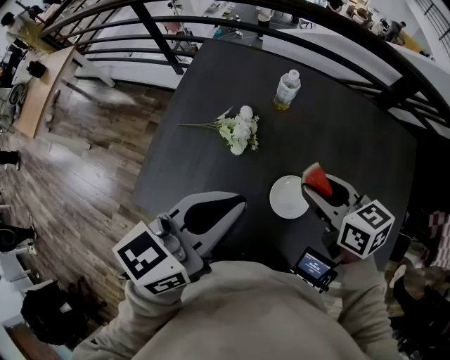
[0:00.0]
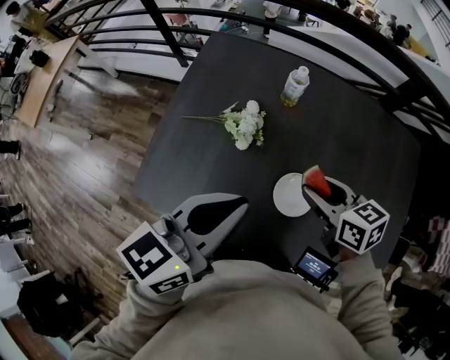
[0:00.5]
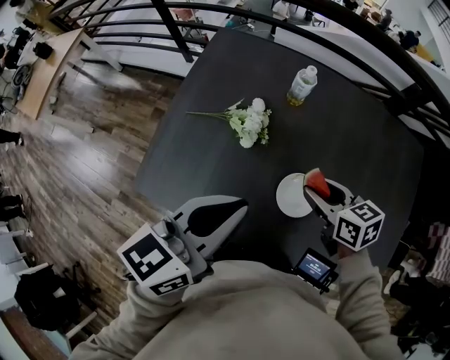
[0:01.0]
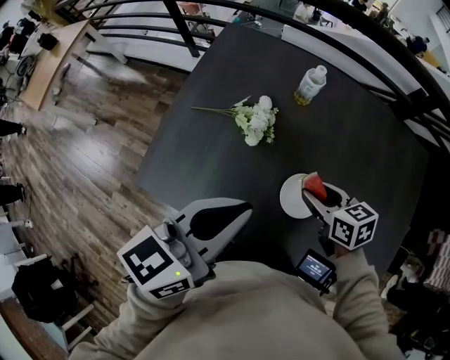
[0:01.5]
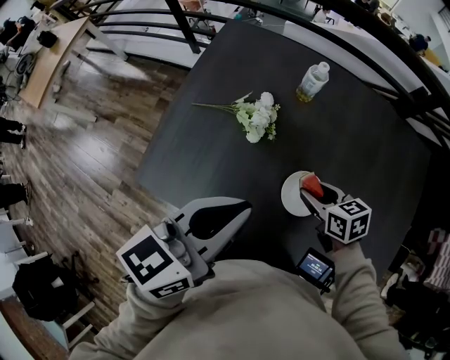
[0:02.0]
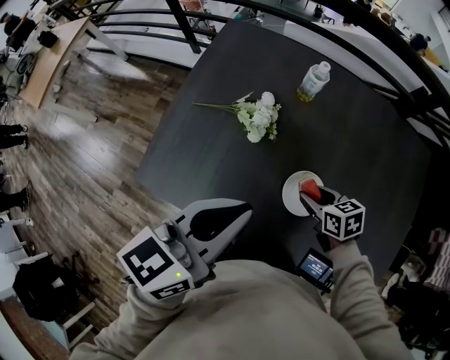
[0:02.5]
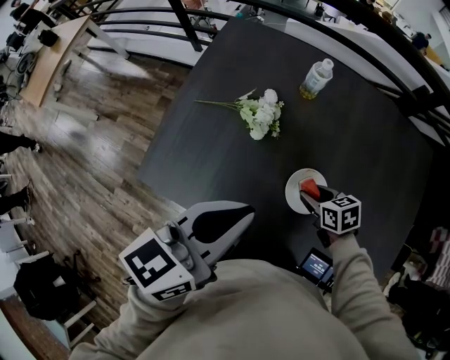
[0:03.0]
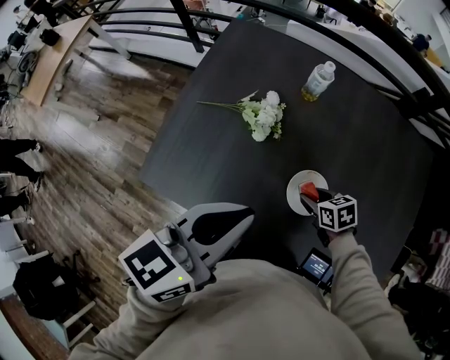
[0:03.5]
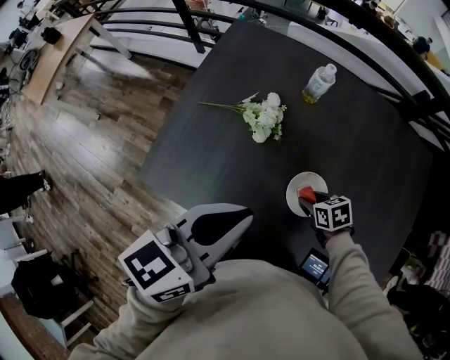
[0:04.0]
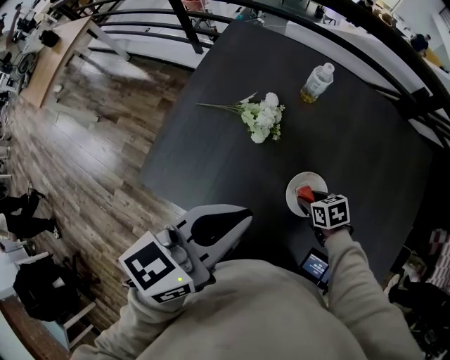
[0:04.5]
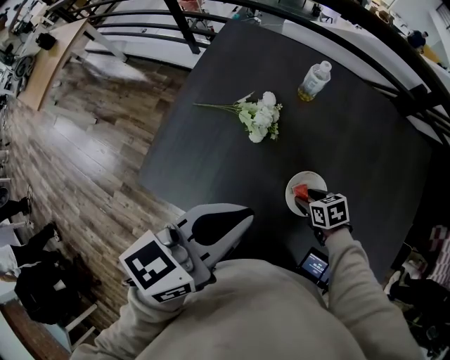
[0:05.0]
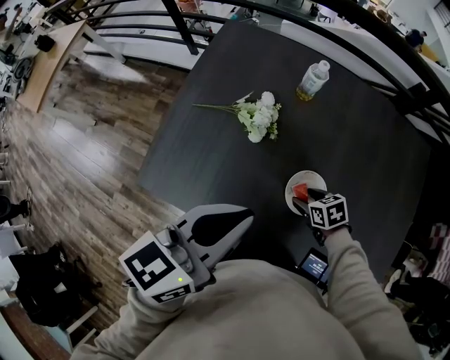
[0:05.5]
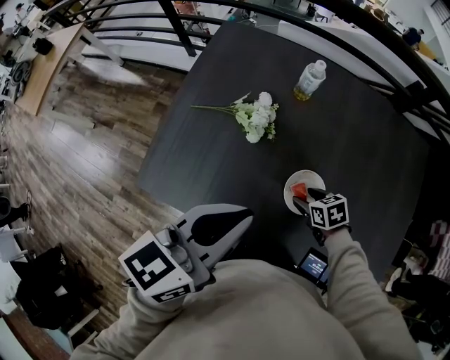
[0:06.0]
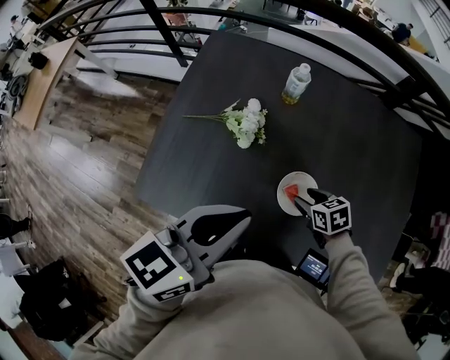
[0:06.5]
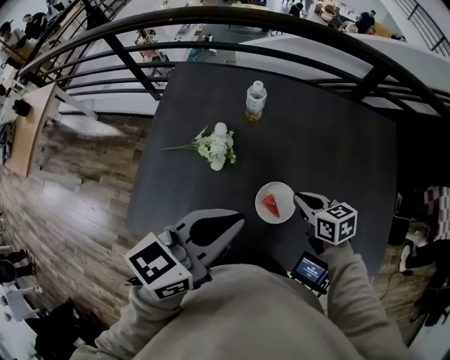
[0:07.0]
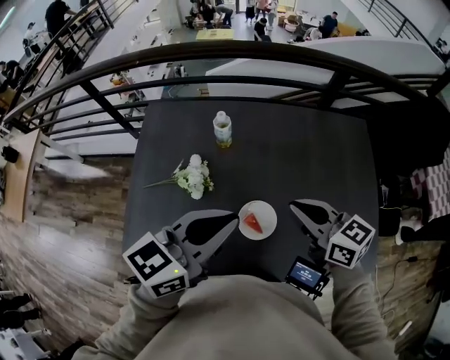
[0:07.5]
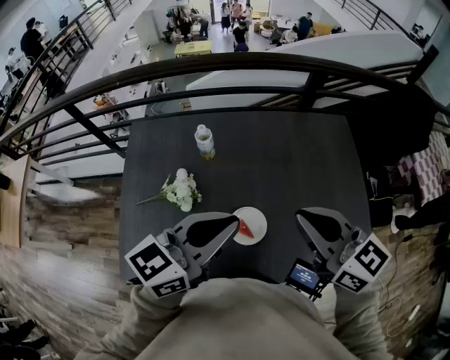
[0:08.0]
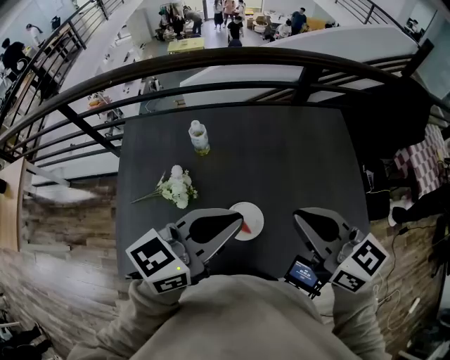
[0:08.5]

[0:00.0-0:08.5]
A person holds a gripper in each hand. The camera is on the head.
0:00.0 to 0:02.0: The right gripper moves downward, roughly 15 cm.
0:02.0 to 0:04.0: The right gripper goes approximately 10 cm downward.
0:04.0 to 0:06.5: The grippers move only a little.
0:06.5 to 0:08.5: The right gripper moves upward, approximately 35 cm, angles its fingers upward, by about 40 degrees, and closes. The left gripper changes place by about 15 cm, and rotates some 30 degrees.

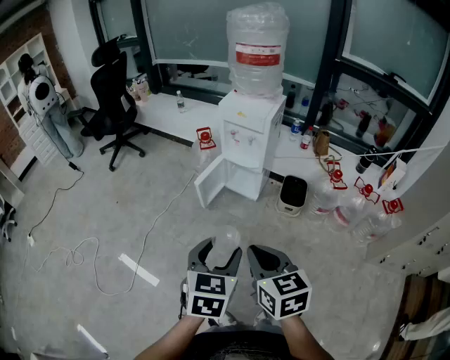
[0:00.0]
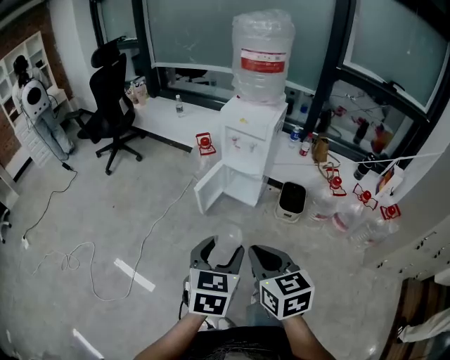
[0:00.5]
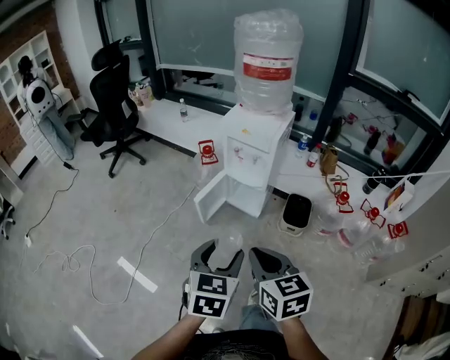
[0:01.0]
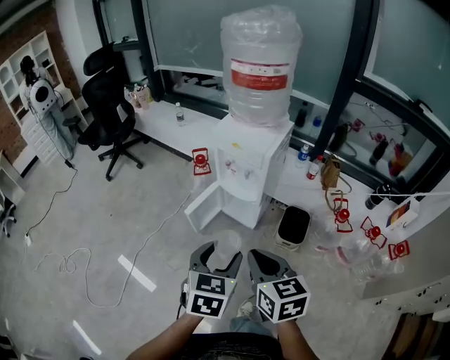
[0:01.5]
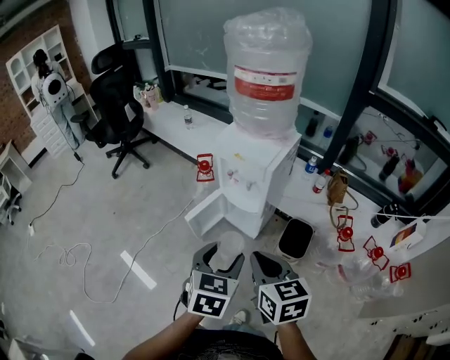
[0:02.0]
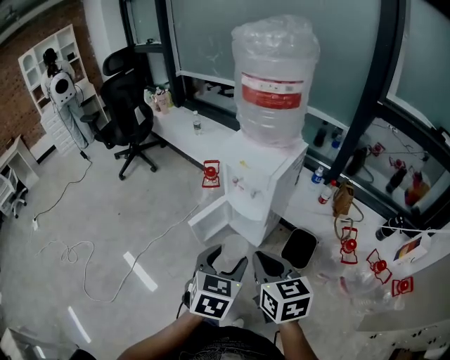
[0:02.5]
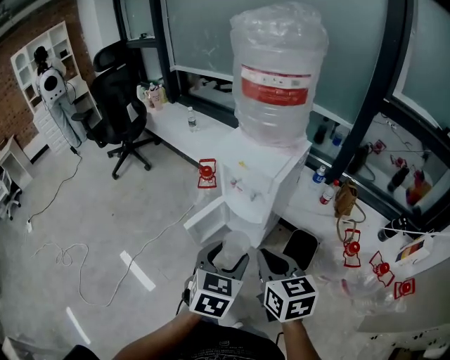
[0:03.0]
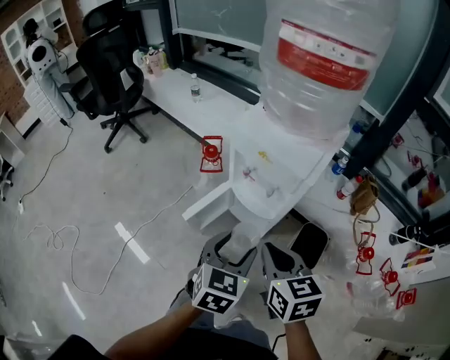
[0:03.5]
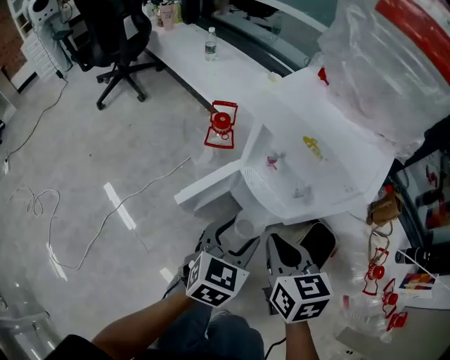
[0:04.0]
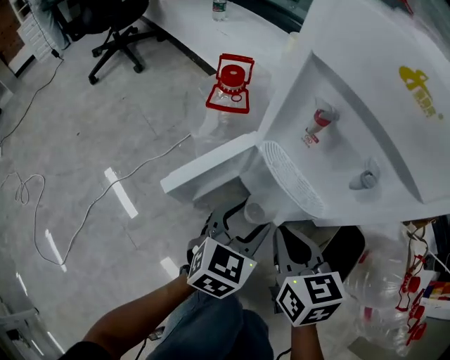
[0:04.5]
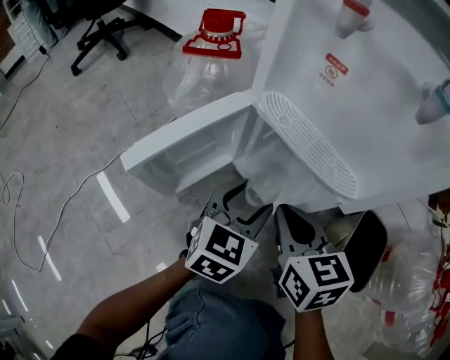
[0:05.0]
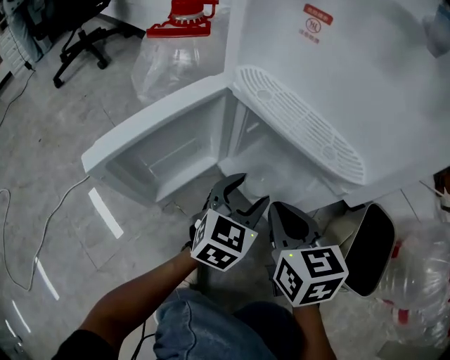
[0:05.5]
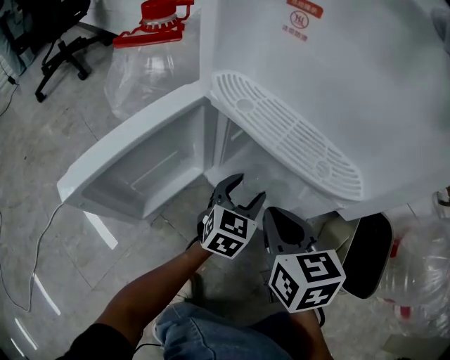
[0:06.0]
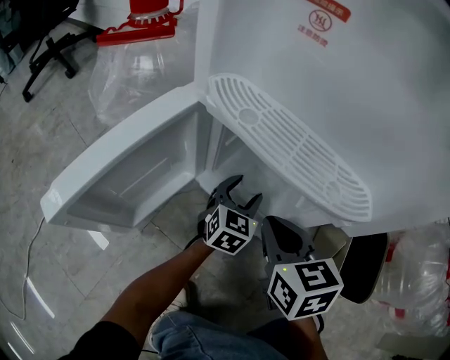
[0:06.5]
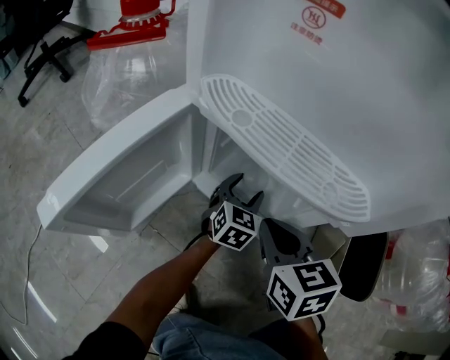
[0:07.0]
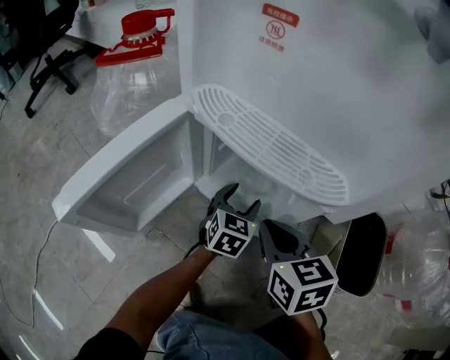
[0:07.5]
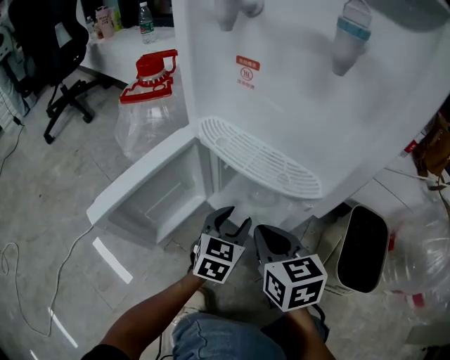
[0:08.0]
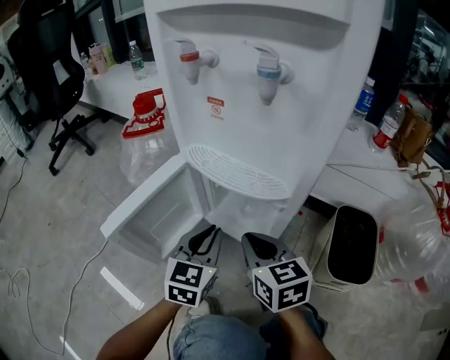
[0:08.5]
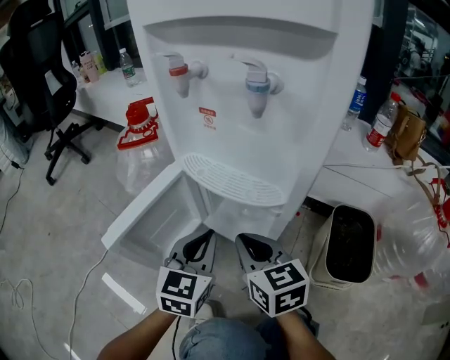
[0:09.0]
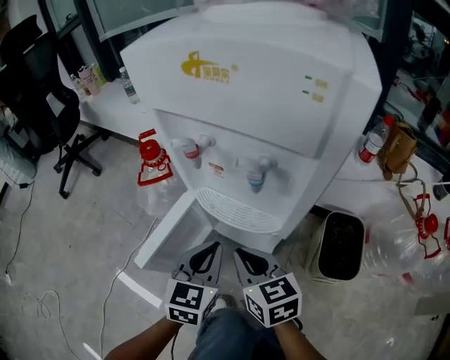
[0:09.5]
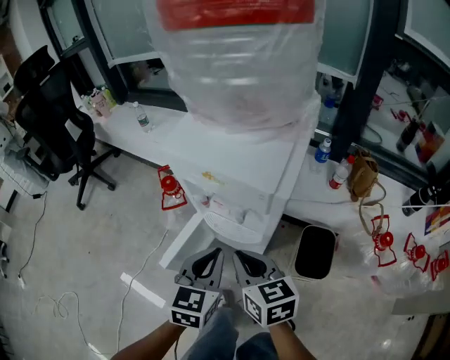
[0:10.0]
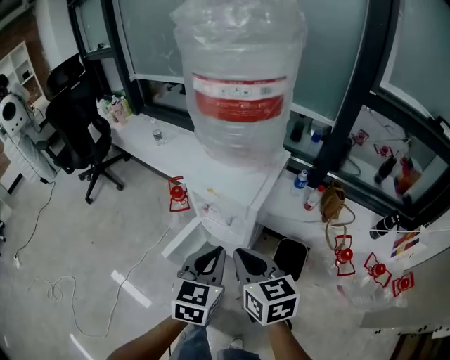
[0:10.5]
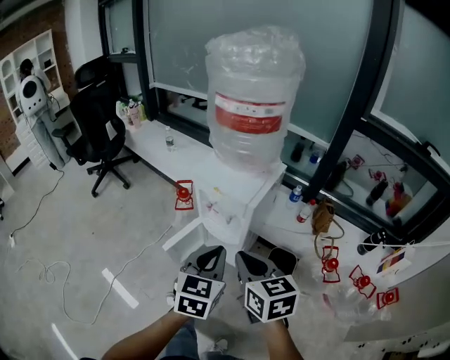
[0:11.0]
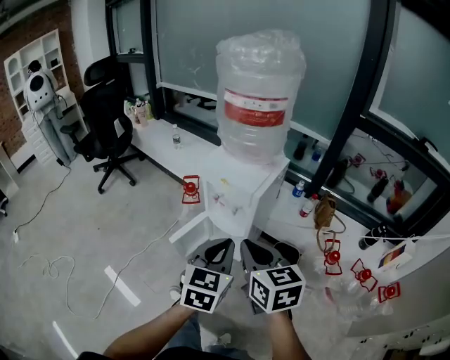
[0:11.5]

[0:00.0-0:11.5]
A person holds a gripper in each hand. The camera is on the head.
0:00.0 to 0:02.0: Both grippers move forward and to the right, approximately 30 cm.
0:02.0 to 0:04.0: The left gripper shifts some 35 cm downward and forward. Meanwhile the right gripper goes roughly 35 cm forward and downward.
0:04.0 to 0:06.0: The two grippers go about 40 cm downward.
0:07.5 to 0:09.5: The right gripper shifts roughly 20 cm upward, while the left gripper heads upward, covering approximately 30 cm, and closes its fingers.
0:09.5 to 0:11.5: Both grippers move upward and backward, roughly 50 cm.

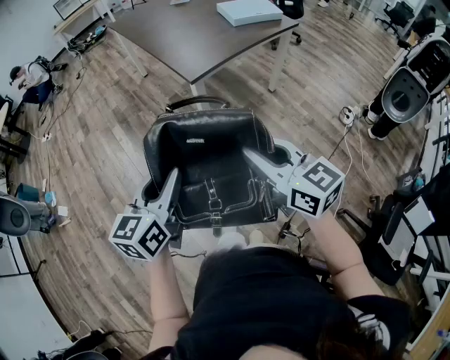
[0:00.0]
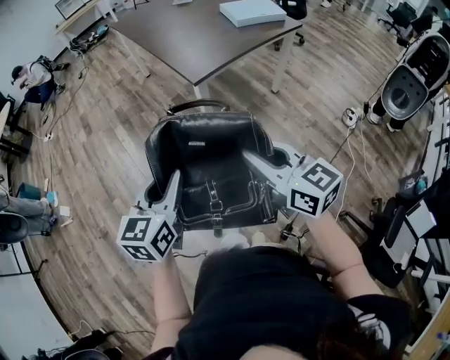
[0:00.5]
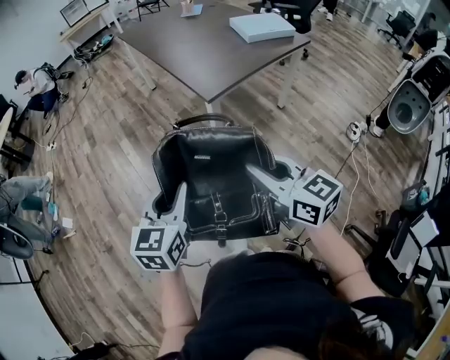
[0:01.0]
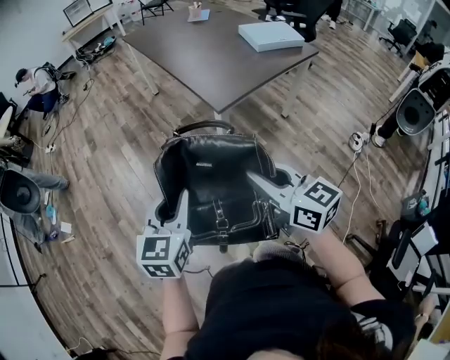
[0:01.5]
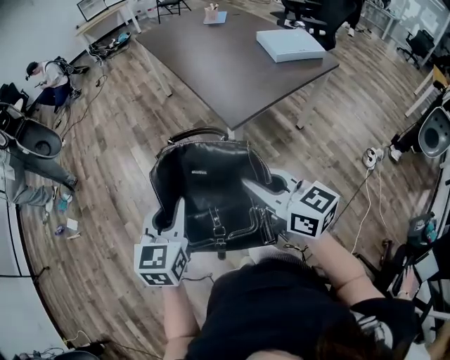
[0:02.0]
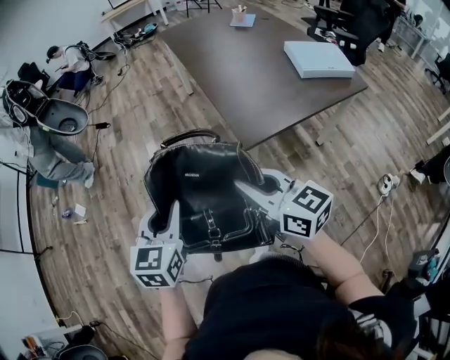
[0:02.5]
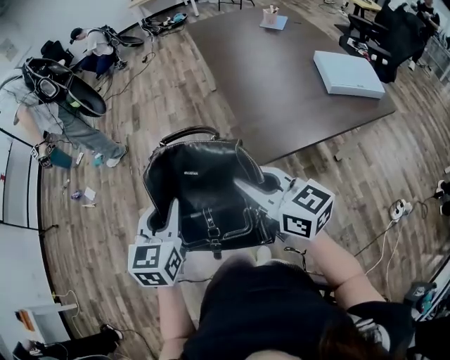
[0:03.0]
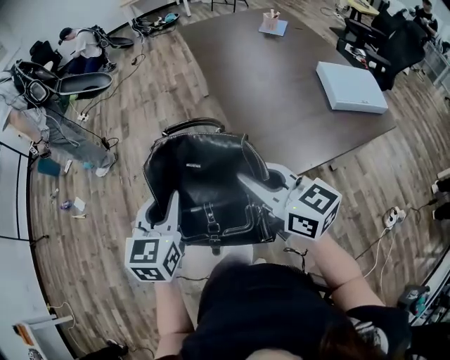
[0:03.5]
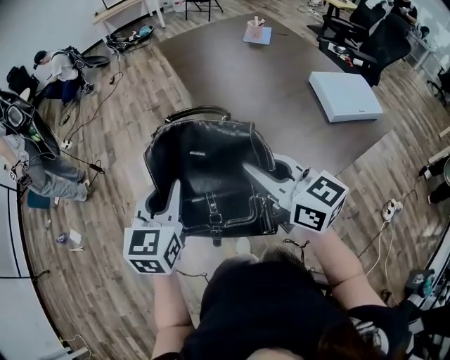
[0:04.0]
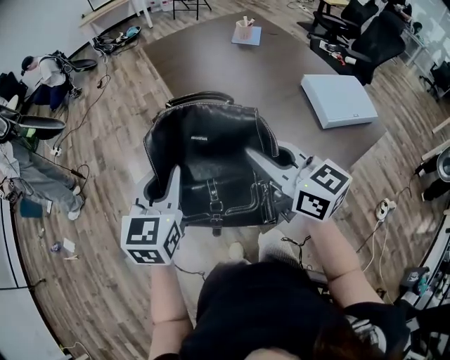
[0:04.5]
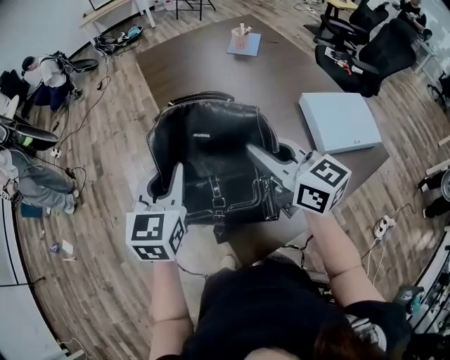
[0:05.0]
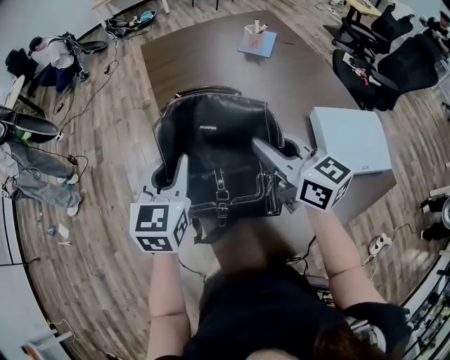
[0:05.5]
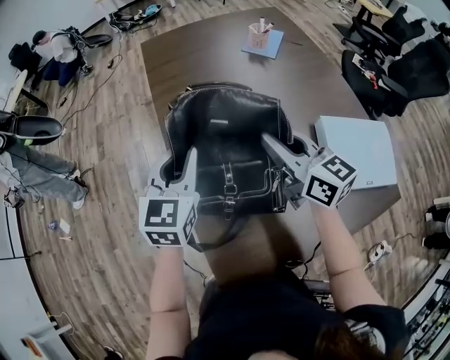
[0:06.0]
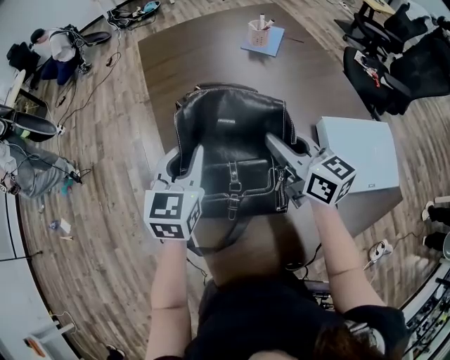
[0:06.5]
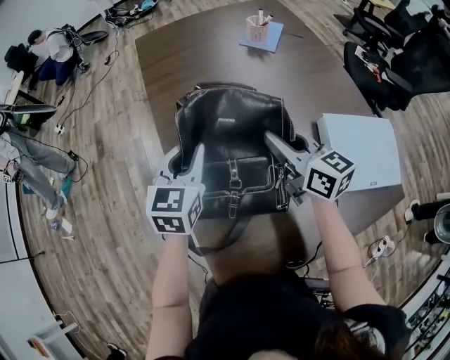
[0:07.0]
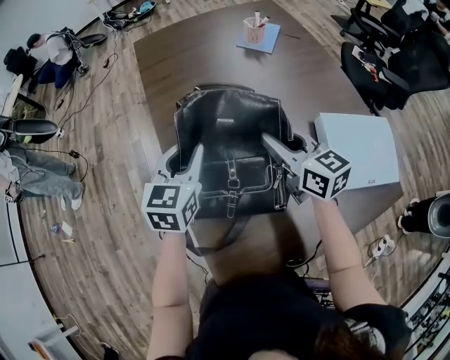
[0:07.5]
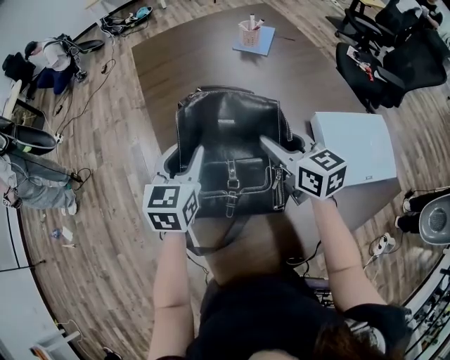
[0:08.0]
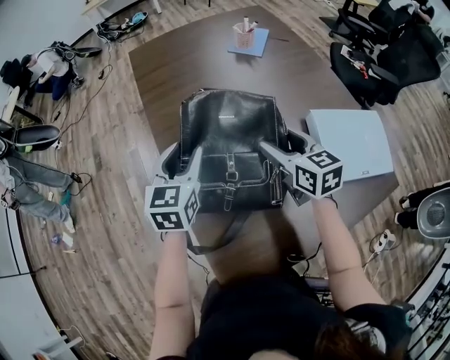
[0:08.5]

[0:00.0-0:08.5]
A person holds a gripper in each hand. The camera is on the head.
0:00.0 to 0:02.0: The grippers both shift forward and to the left by approximately 20 cm. The left gripper changes its angle by roughly 20 degrees.
0:02.0 to 0:04.0: Both grippers move forward, some 40 cm.
0:04.0 to 0:06.5: The two grippers travel together, forward and to the right, approximately 40 cm.
0:06.5 to 0:08.5: The left gripper opens, while the right gripper opens up.
